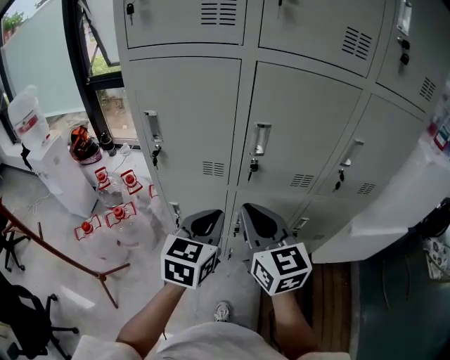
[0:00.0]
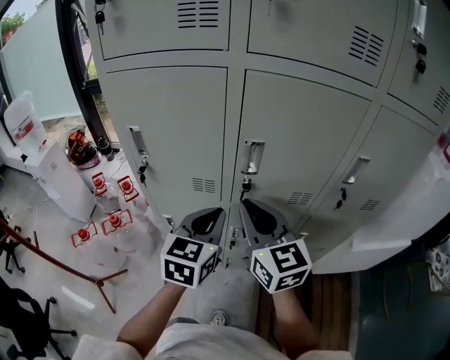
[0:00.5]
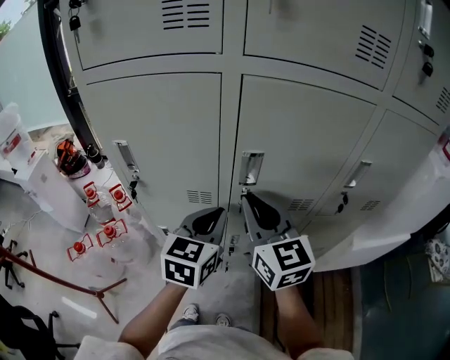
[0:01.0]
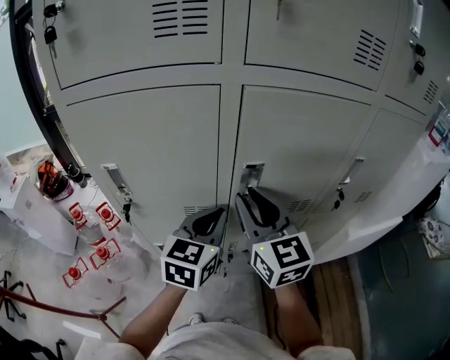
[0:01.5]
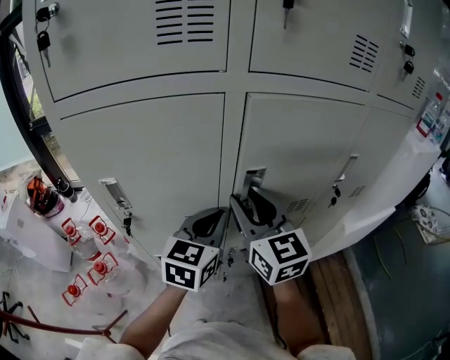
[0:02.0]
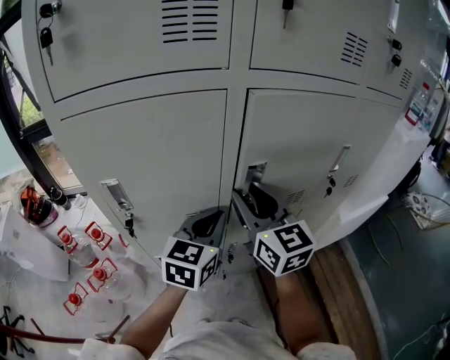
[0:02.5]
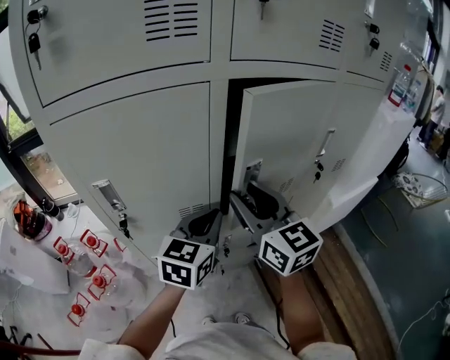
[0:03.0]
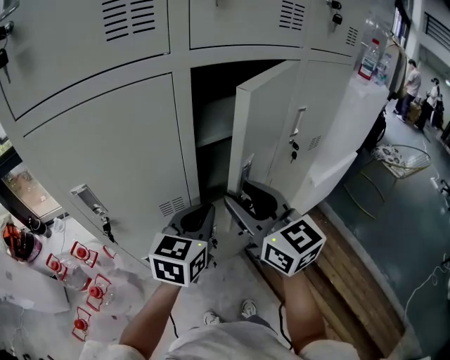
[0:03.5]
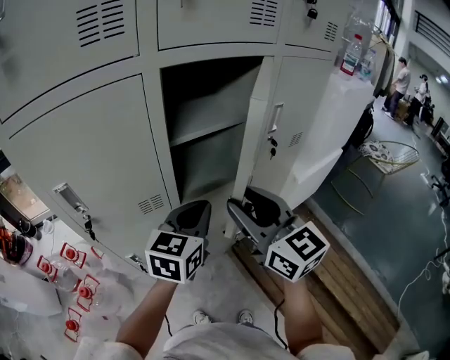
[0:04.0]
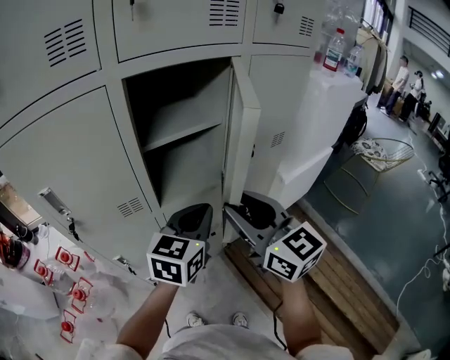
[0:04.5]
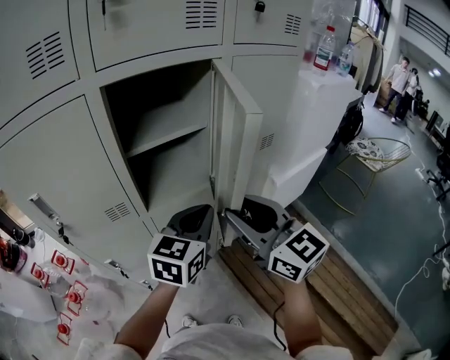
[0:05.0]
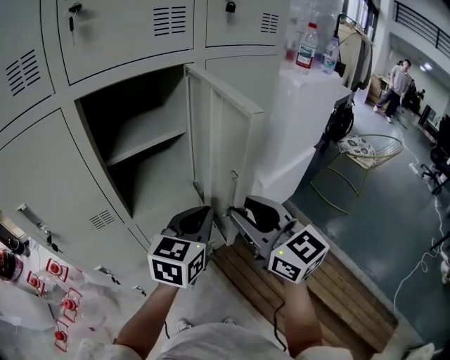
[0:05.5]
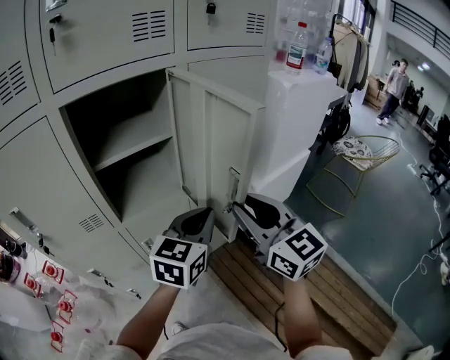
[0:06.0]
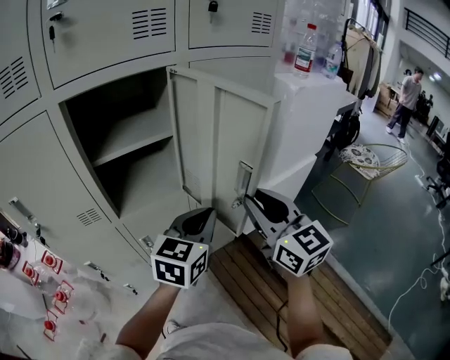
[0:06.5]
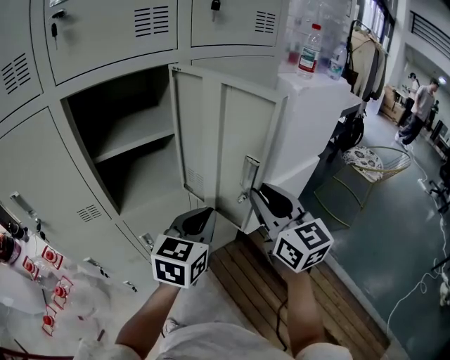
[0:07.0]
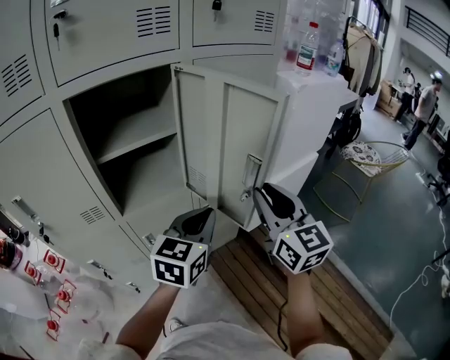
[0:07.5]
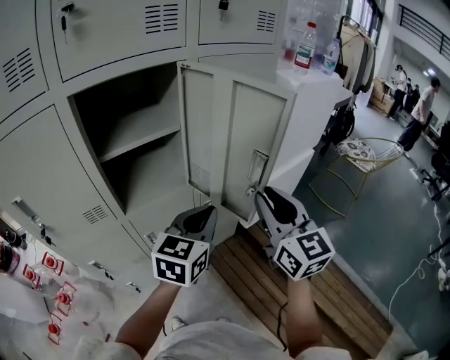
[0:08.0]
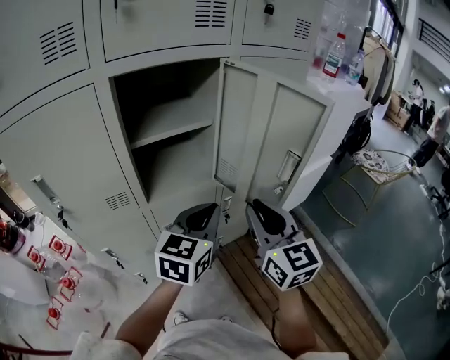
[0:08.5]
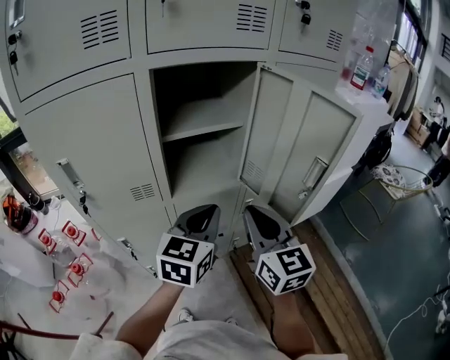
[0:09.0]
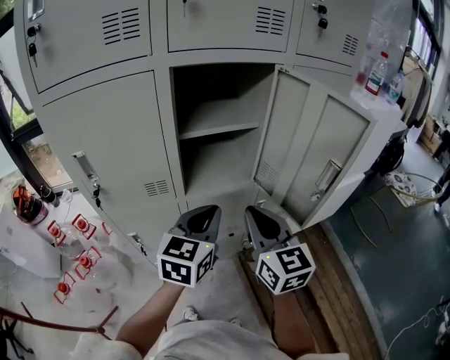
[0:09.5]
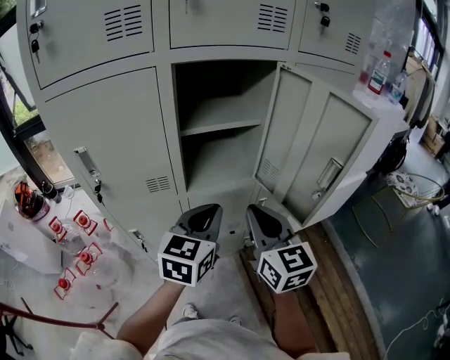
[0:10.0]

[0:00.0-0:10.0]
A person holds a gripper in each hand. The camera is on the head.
0:00.0 to 0:02.0: The grippers both shift forward by roughly 15 cm. The right gripper opens its fingers.
0:02.0 to 0:04.0: The left gripper goes some 10 cm to the right and backward. Meanwhile the right gripper moves backward and to the right, roughly 15 cm.
0:04.0 to 0:06.0: Both grippers move to the right, about 20 cm.
0:08.0 to 0:10.0: Both grippers move to the left, roughly 15 cm.

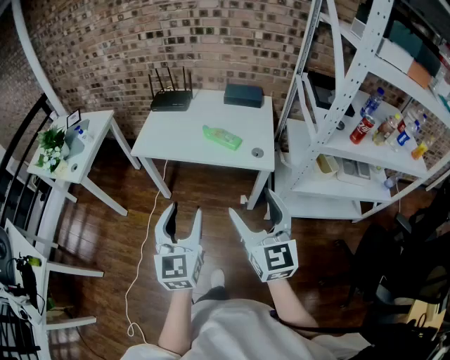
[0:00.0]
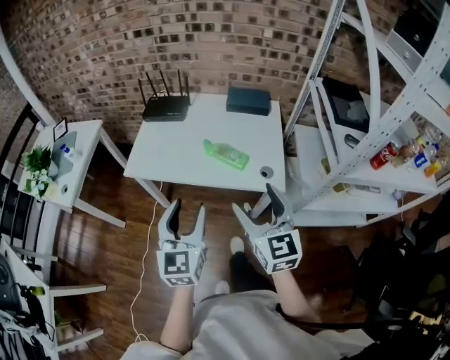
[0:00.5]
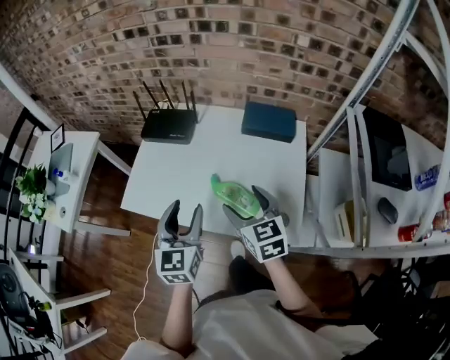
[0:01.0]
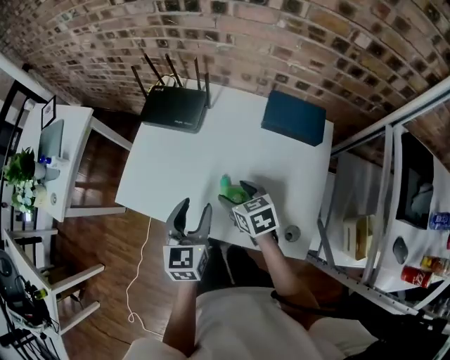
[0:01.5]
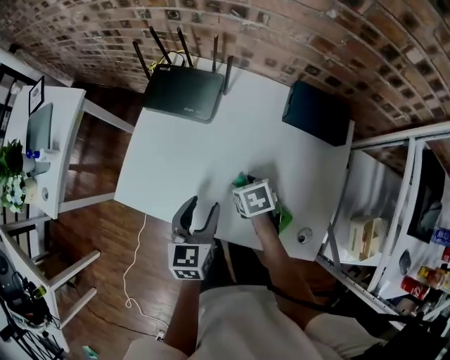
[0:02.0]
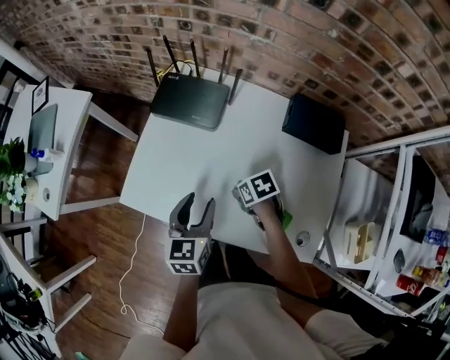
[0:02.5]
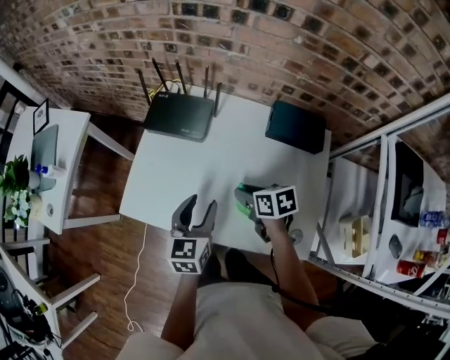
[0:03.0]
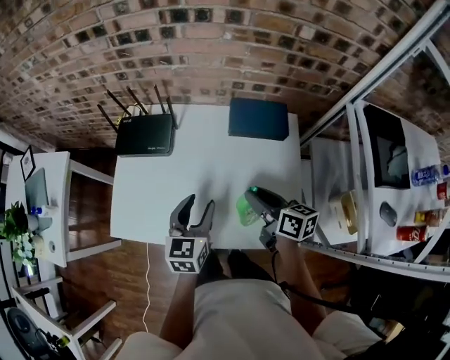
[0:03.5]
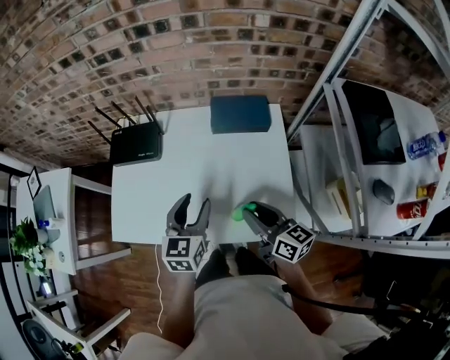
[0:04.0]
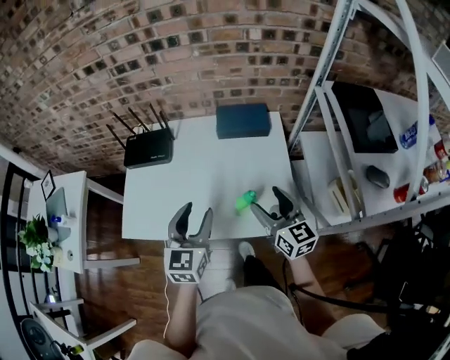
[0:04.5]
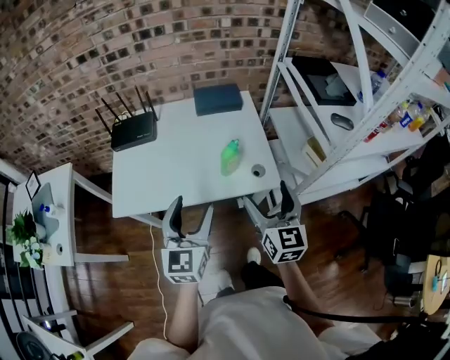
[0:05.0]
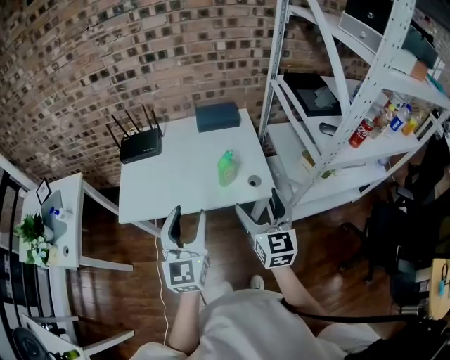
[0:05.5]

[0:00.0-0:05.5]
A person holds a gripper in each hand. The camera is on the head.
0:00.0 to 0:02.0: The pair of grippers is taken forward, roughly 60 cm. The right gripper goes about 40 cm downward, and tilts its fingers approximately 70 degrees downward, while the left gripper shifts some 25 cm downward, and changes its angle by approximately 30 degrees.
0:02.0 to 0:03.5: The left gripper shifts by some 15 cm, while the right gripper heads upward, covering roughly 20 cm, and tips its fingers upward by roughly 50 degrees.
0:03.5 to 0:05.5: The grippers both shift backward and upward by some 35 cm. The left gripper turns by some 30 degrees. Meanwhile the right gripper turns by approximately 50 degrees, and opens up.

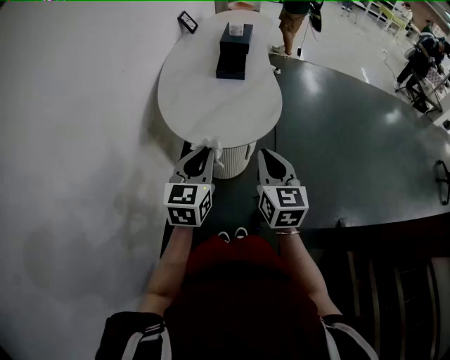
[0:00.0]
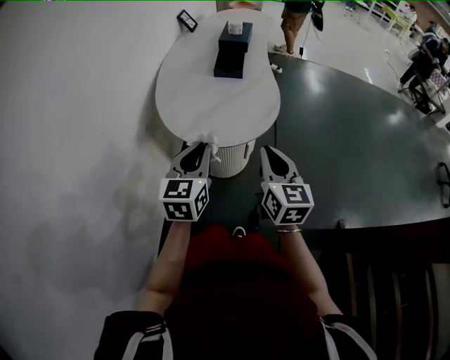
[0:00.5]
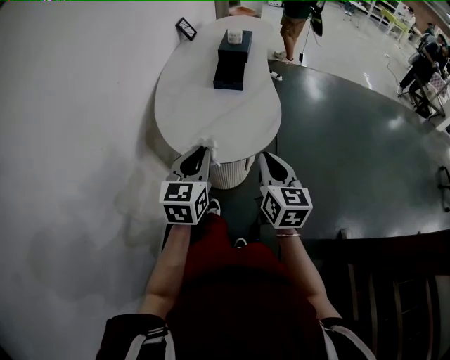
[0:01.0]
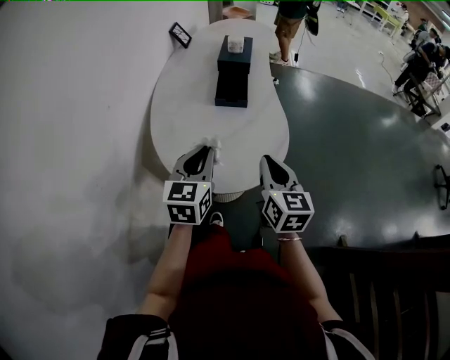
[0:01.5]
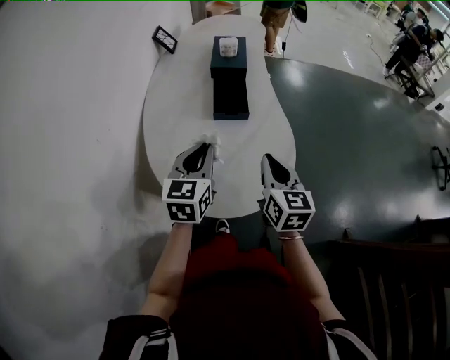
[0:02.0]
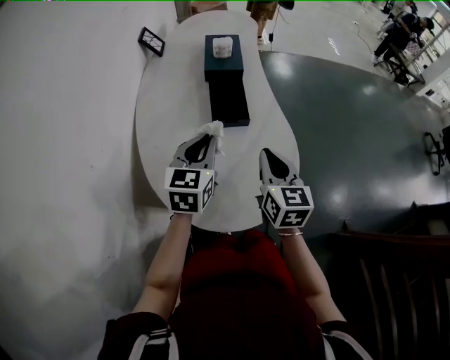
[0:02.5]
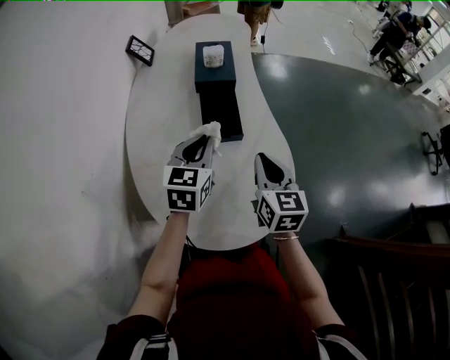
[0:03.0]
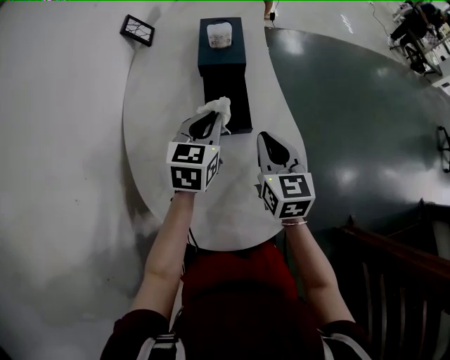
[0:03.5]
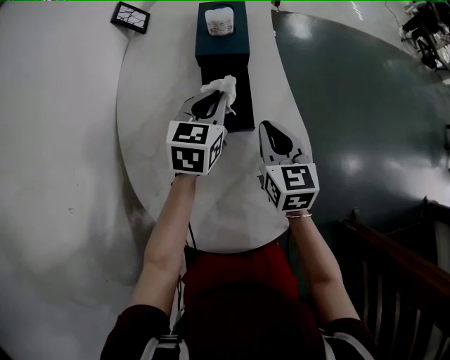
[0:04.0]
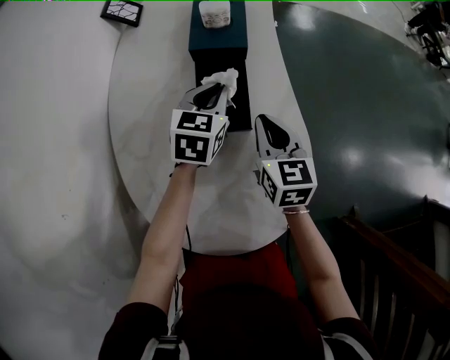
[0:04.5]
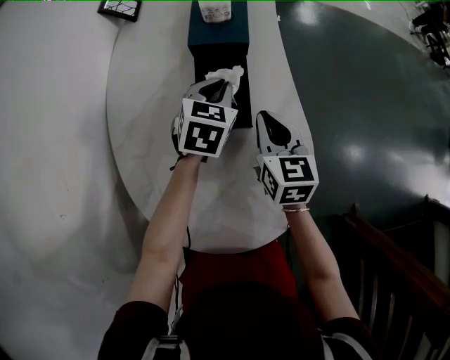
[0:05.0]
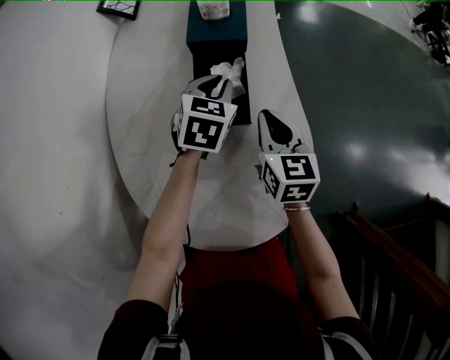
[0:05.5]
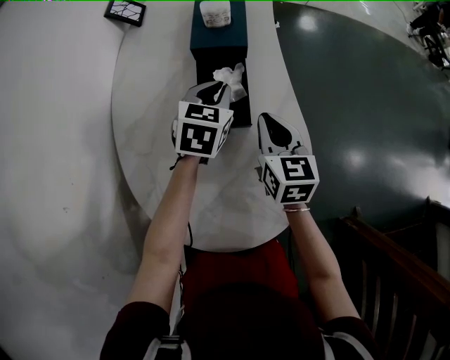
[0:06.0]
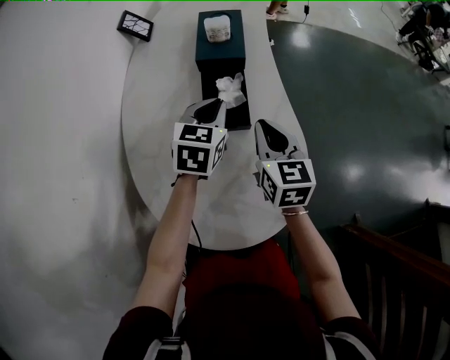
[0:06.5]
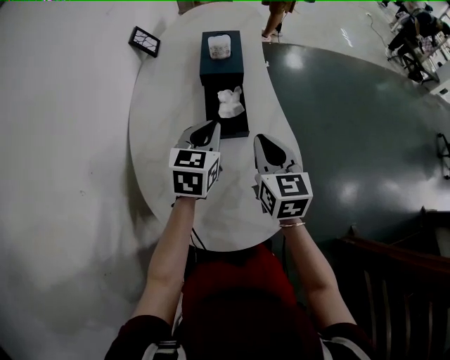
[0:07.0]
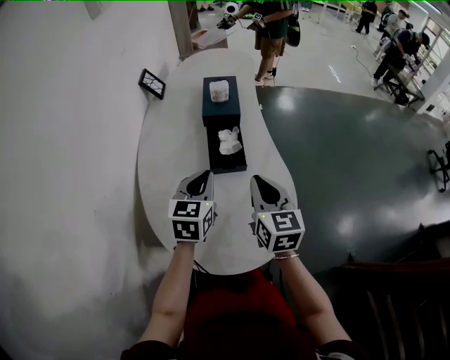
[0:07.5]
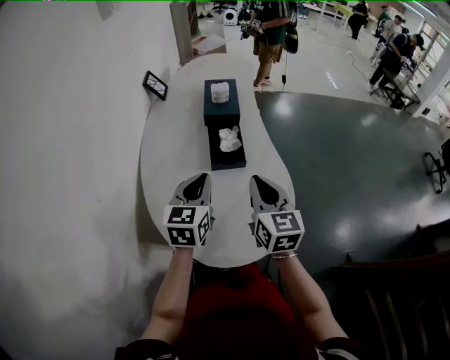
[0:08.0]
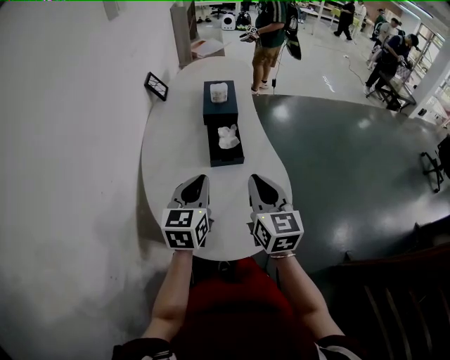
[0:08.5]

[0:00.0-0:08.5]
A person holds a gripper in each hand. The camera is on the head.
0:00.0 to 0:02.0: The grippers both shift forward by approximately 25 cm.
0:02.0 to 0:04.0: The two grippers go roughly 20 cm forward.
0:06.5 to 0:08.5: The two grippers go about 20 cm backward and upward.

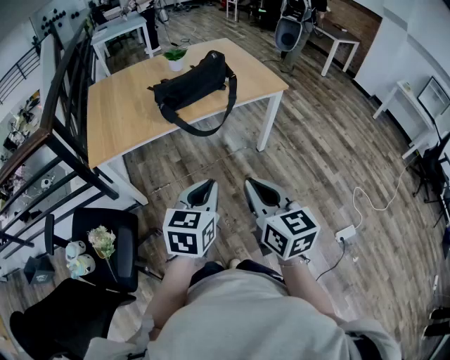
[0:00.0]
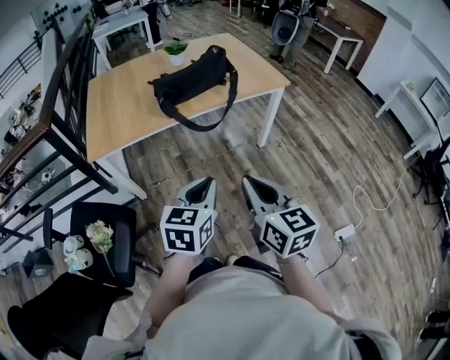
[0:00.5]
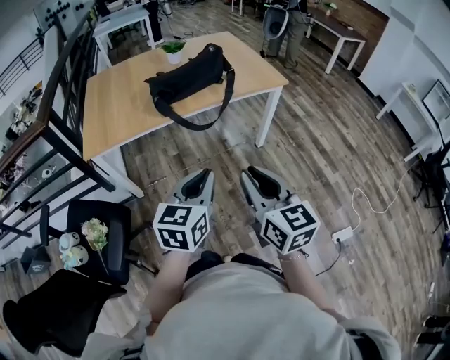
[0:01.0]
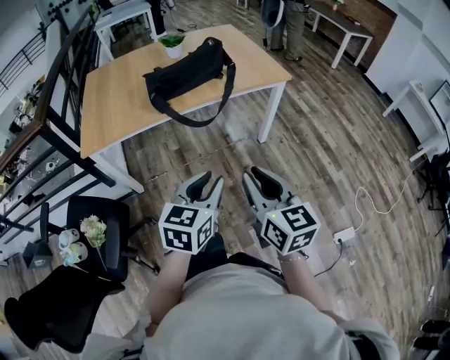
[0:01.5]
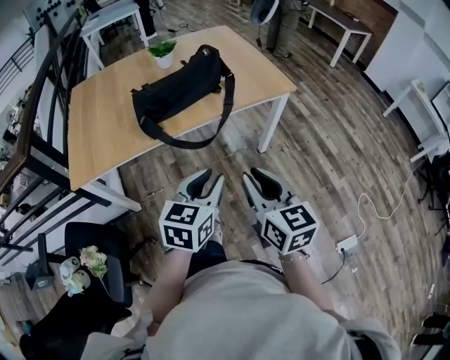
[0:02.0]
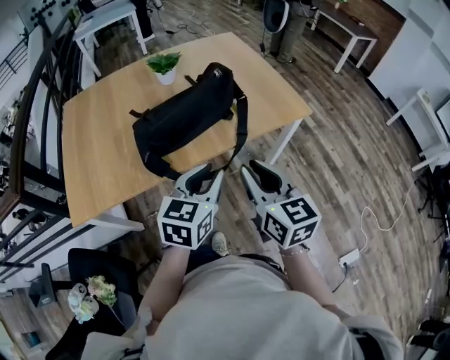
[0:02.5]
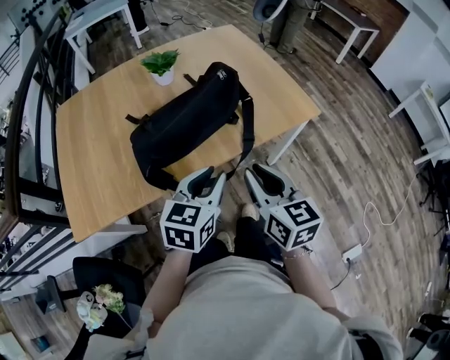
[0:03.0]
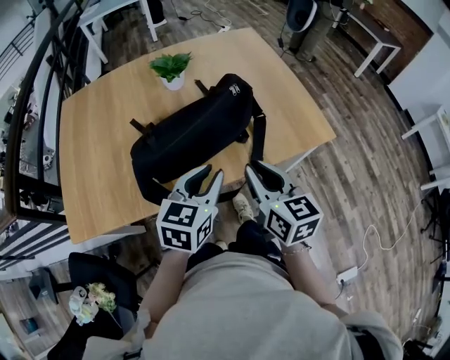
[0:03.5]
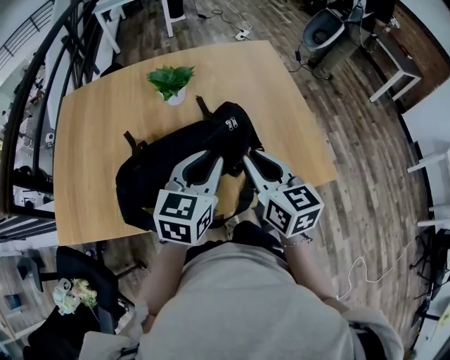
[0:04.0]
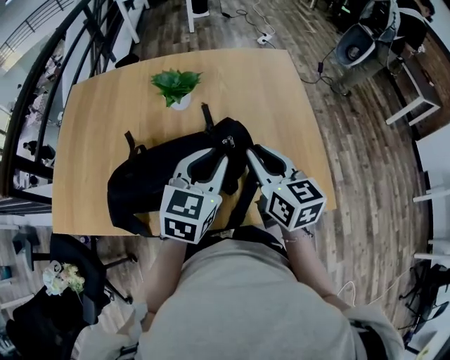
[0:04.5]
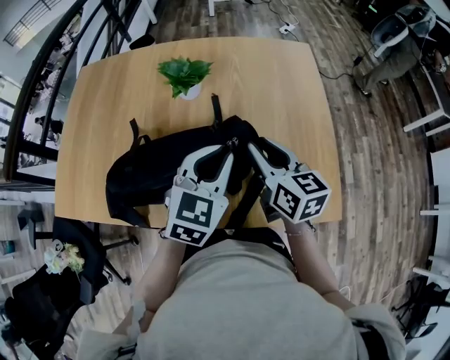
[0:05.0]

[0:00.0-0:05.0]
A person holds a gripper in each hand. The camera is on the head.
0:00.0 to 0:02.5: The grippers both shift forward by about 35 cm.
0:02.5 to 0:05.0: The right gripper changes place by roughly 40 cm, and rotates some 30 degrees, while the left gripper ends up approximately 35 cm from where it was, and turns by some 20 degrees.
